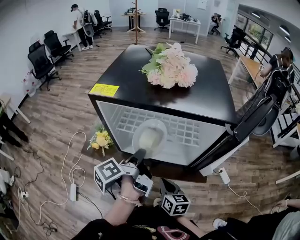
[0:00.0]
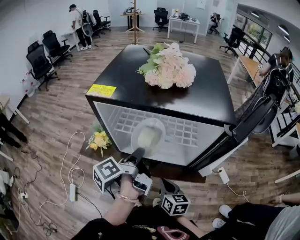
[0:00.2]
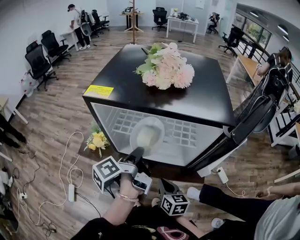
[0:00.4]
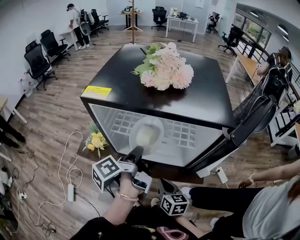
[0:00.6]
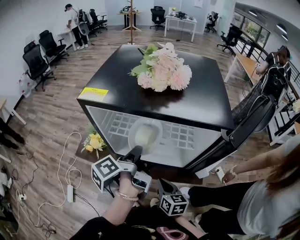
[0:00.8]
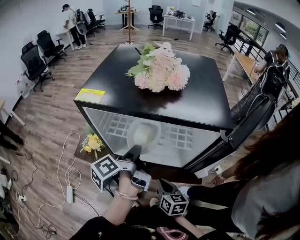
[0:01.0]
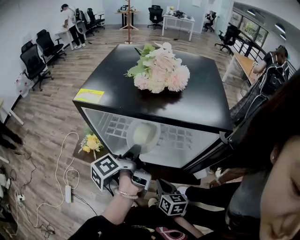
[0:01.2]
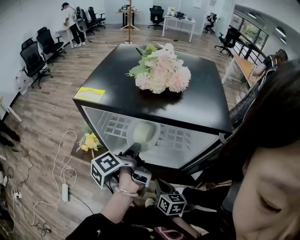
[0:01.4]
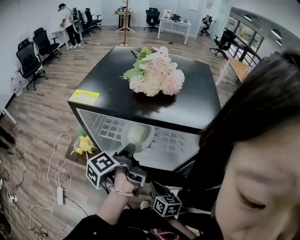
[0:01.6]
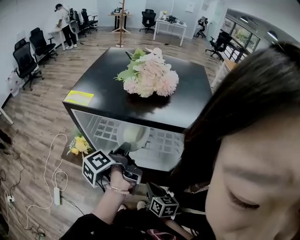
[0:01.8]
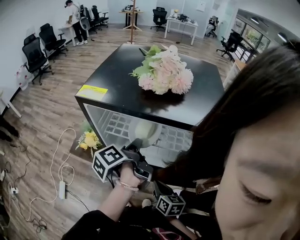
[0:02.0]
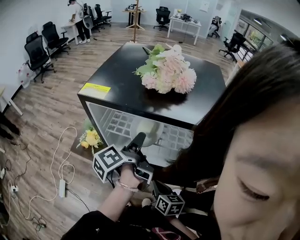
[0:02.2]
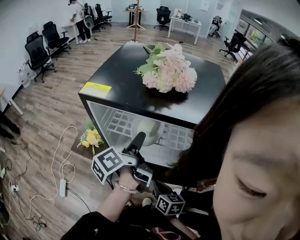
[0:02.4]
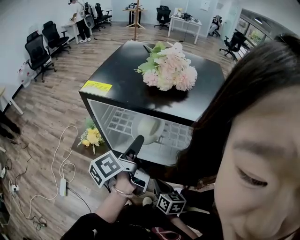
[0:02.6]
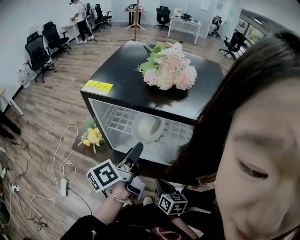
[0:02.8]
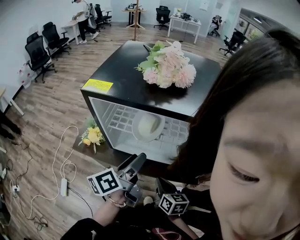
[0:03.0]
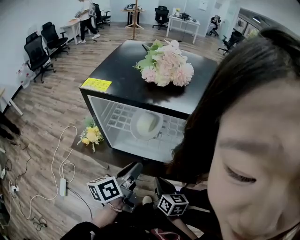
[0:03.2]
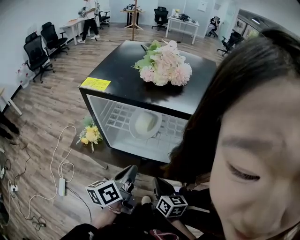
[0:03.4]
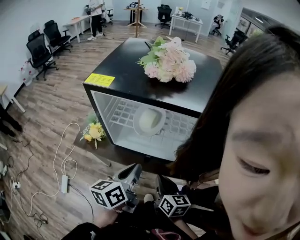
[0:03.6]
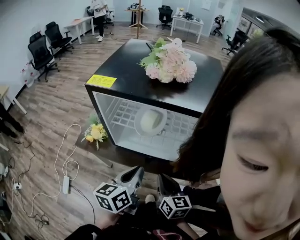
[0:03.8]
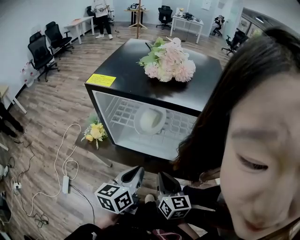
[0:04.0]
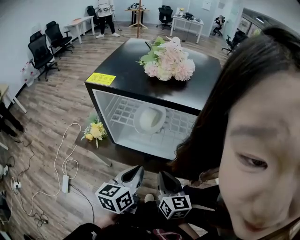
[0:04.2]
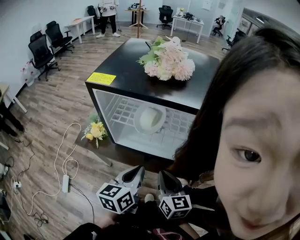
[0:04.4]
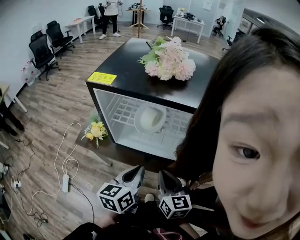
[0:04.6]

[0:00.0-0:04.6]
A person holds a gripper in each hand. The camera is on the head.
0:03.0 to 0:04.6: The right gripper moves upward, some 10 cm.

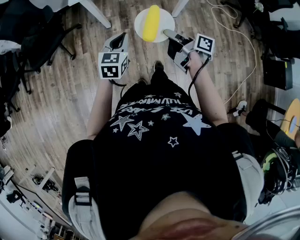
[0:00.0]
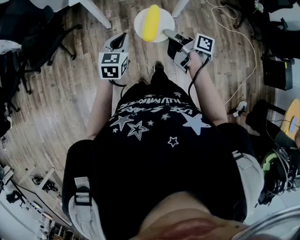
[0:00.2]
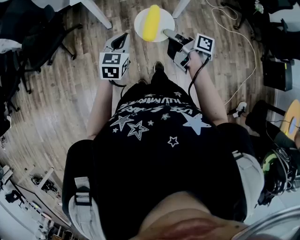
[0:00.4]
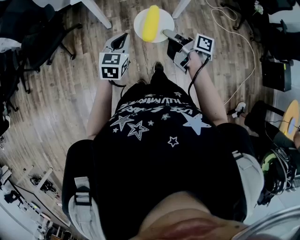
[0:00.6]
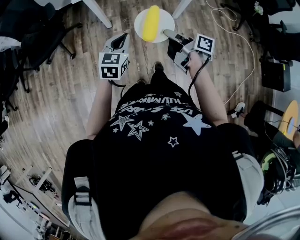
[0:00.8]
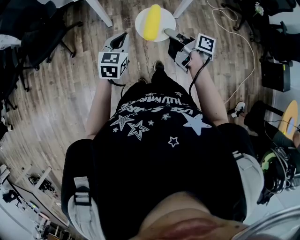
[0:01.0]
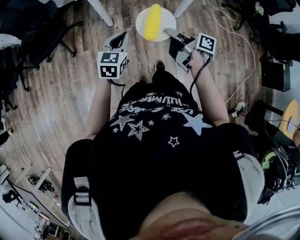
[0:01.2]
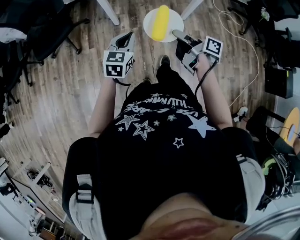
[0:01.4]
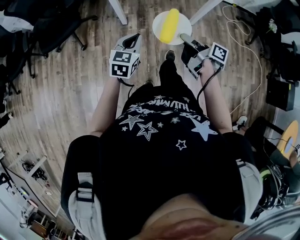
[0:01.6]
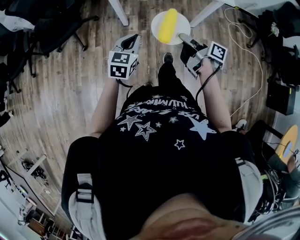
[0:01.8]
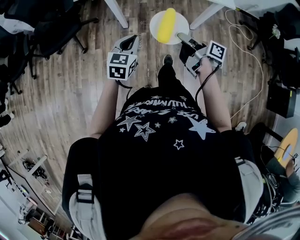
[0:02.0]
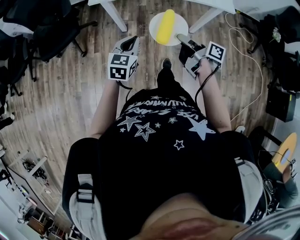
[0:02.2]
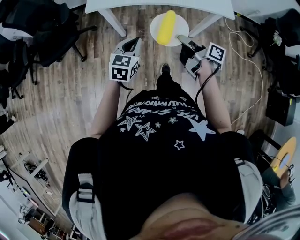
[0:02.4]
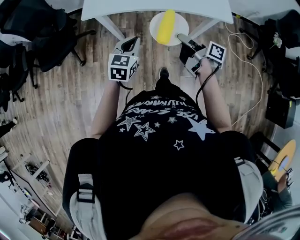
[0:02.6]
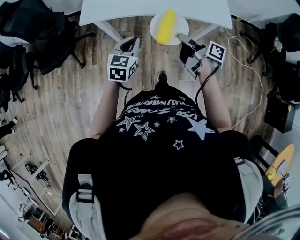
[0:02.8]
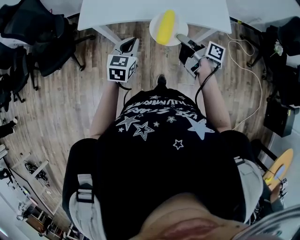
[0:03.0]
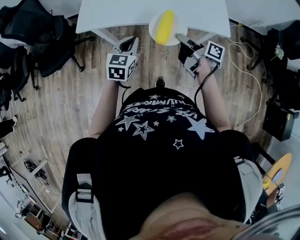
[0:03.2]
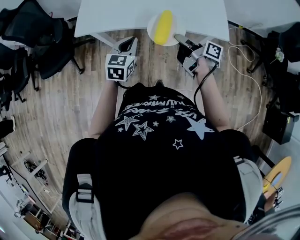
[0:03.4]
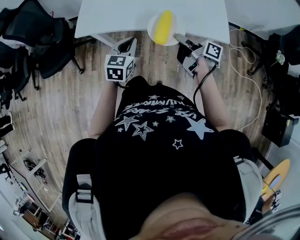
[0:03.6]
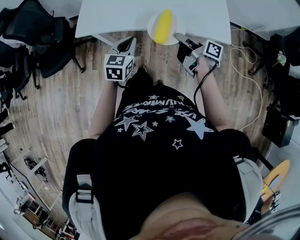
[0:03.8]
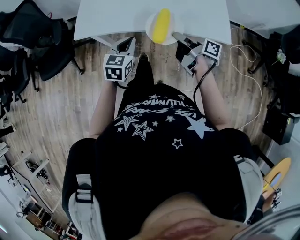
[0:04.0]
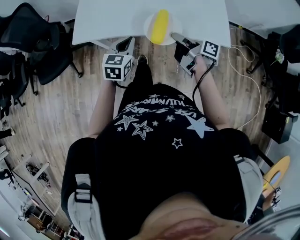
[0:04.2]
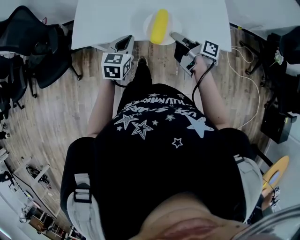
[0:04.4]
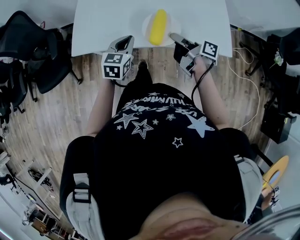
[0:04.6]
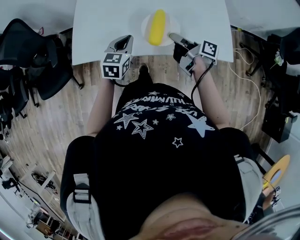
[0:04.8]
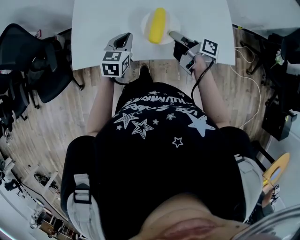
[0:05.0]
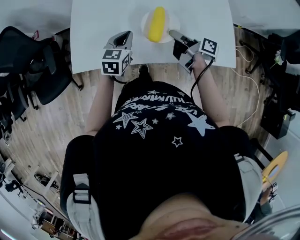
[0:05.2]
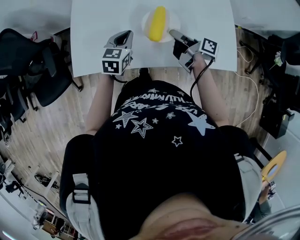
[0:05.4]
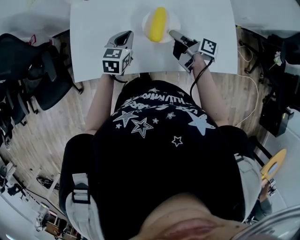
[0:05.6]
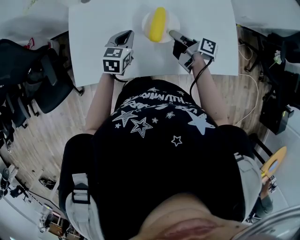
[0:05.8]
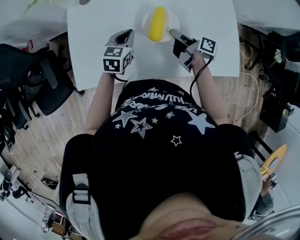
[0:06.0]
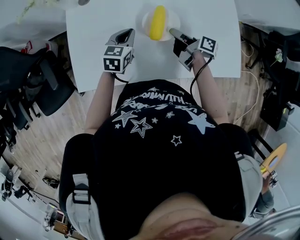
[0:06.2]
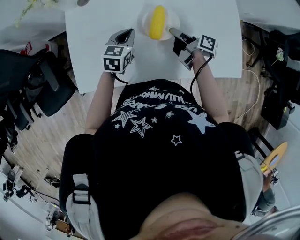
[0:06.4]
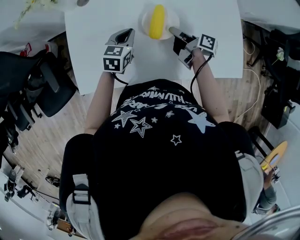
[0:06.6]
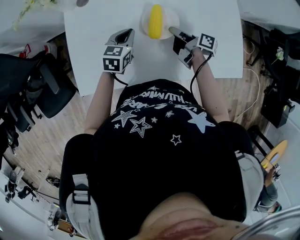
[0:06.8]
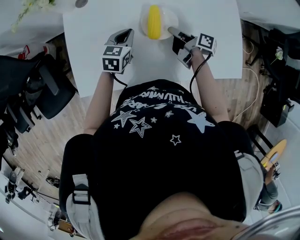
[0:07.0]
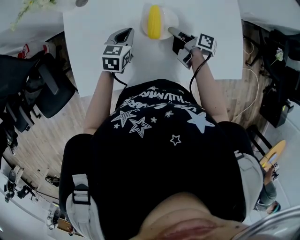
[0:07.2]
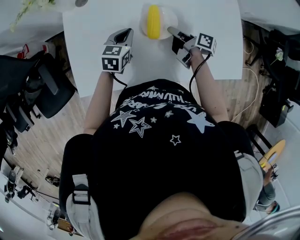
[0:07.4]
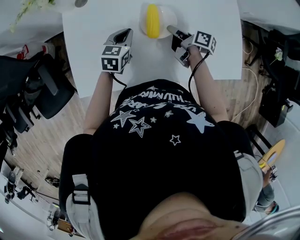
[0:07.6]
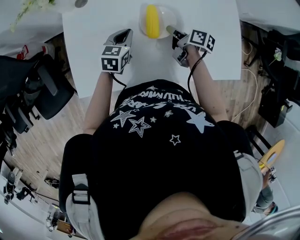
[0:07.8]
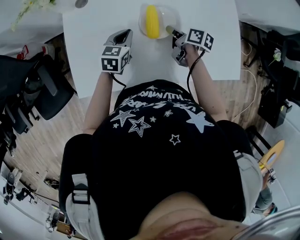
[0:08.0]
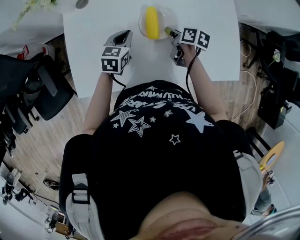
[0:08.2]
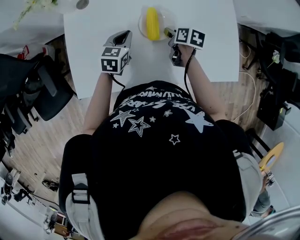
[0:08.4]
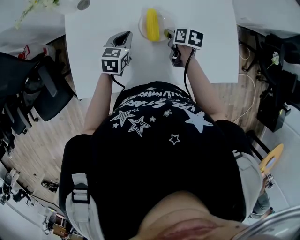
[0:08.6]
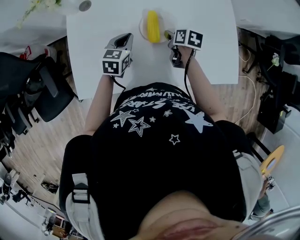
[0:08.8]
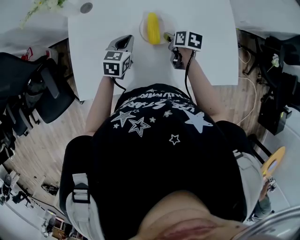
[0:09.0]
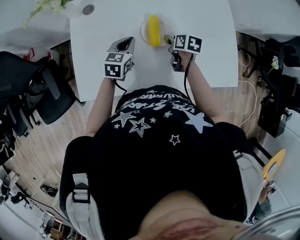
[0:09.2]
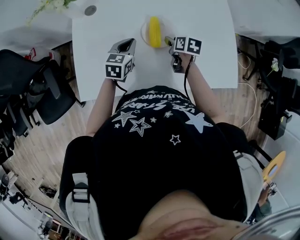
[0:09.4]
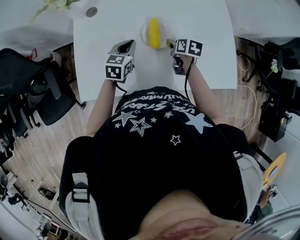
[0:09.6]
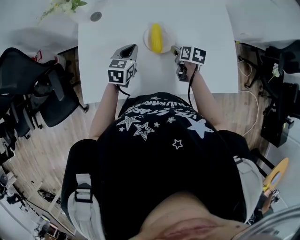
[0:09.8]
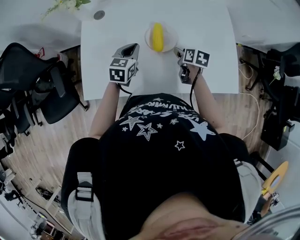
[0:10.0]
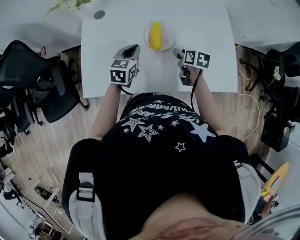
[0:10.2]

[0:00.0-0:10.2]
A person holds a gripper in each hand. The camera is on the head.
0:01.4 to 0:03.0: The left gripper shifts by roughly 30 cm.
0:03.0 to 0:04.4: The left gripper changes place by roughly 15 cm.
0:04.4 to 0:05.8: The left gripper shifts by some 25 cm.
0:05.8 to 0:07.2: The left gripper ends up some 10 cm from where it was.
0:08.8 to 0:10.2: The left gripper moves some 10 cm.

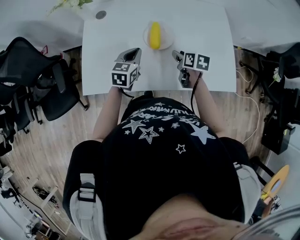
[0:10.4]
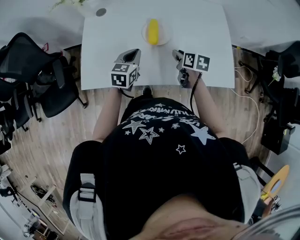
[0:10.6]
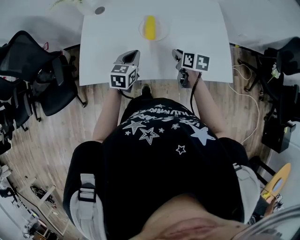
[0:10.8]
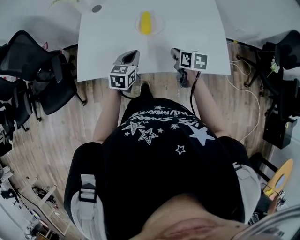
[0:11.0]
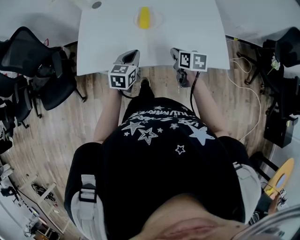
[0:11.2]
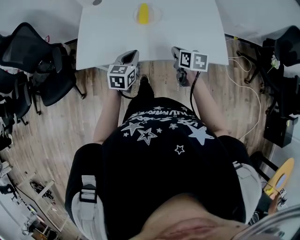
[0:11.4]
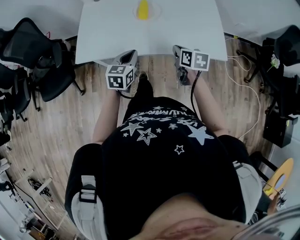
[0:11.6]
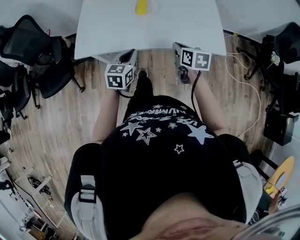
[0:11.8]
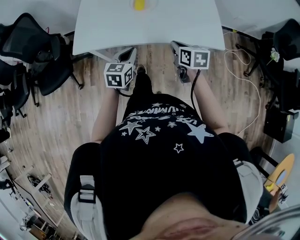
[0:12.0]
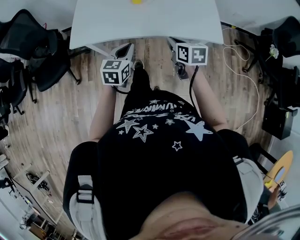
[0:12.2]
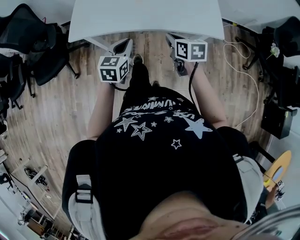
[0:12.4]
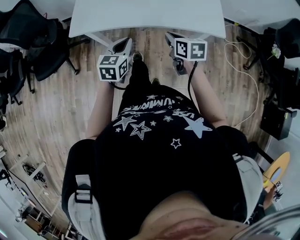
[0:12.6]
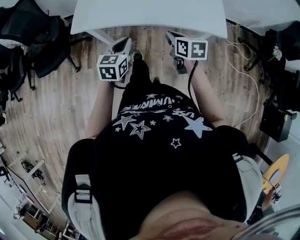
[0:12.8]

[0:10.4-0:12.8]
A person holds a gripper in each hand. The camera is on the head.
0:10.4 to 0:11.6: The left gripper moves roughly 20 cm.
0:11.6 to 0:12.8: The left gripper moves about 10 cm.

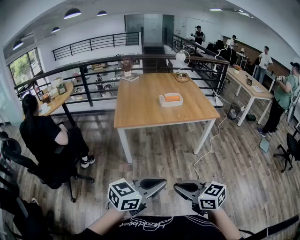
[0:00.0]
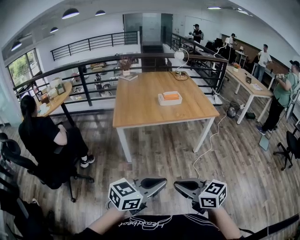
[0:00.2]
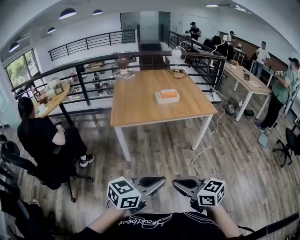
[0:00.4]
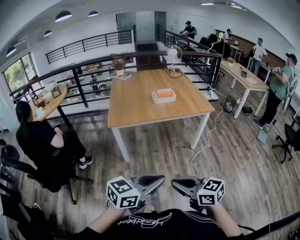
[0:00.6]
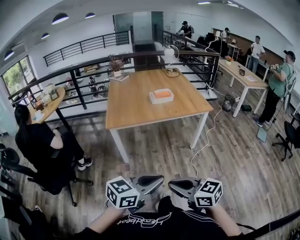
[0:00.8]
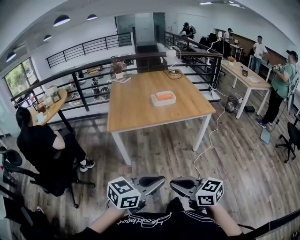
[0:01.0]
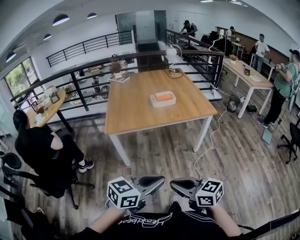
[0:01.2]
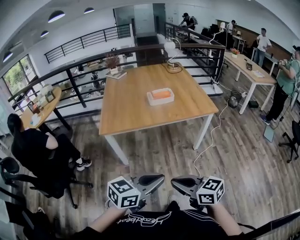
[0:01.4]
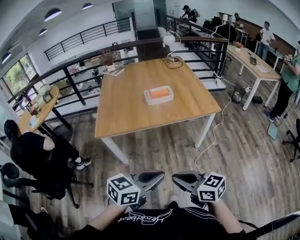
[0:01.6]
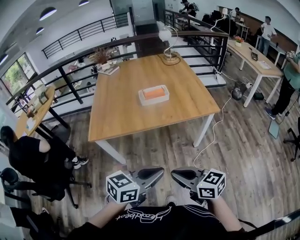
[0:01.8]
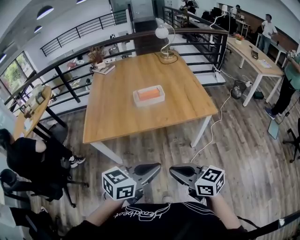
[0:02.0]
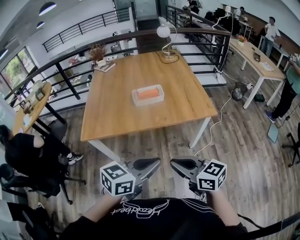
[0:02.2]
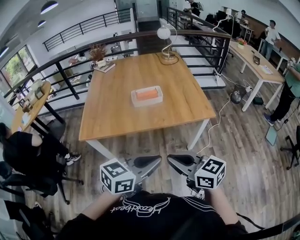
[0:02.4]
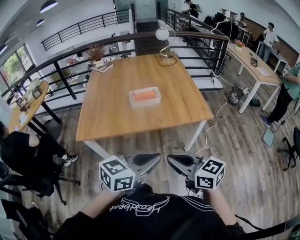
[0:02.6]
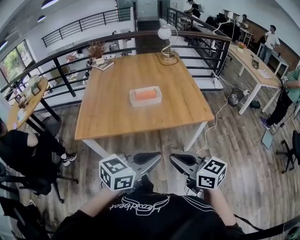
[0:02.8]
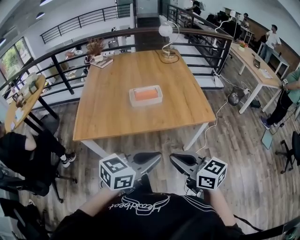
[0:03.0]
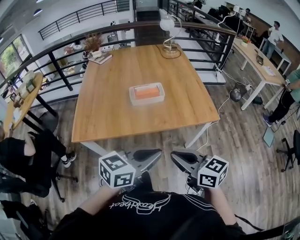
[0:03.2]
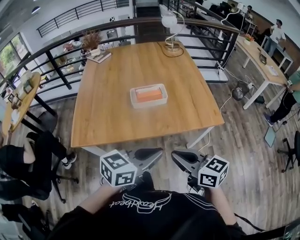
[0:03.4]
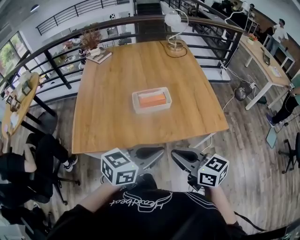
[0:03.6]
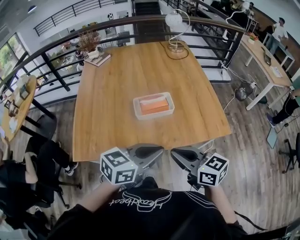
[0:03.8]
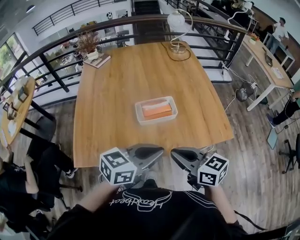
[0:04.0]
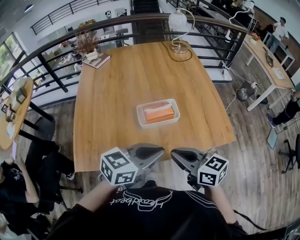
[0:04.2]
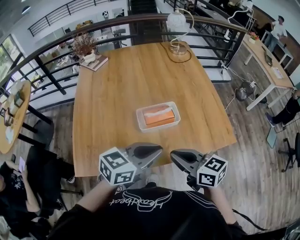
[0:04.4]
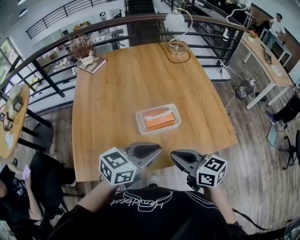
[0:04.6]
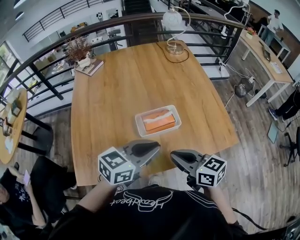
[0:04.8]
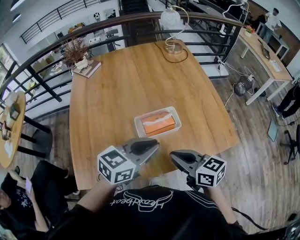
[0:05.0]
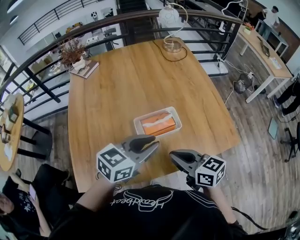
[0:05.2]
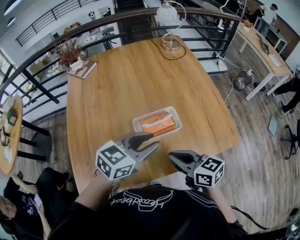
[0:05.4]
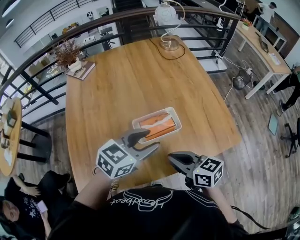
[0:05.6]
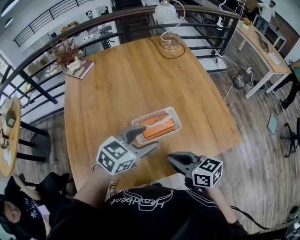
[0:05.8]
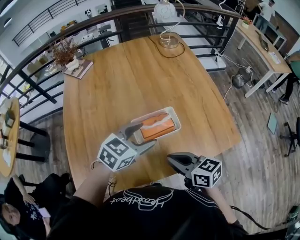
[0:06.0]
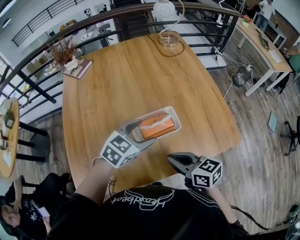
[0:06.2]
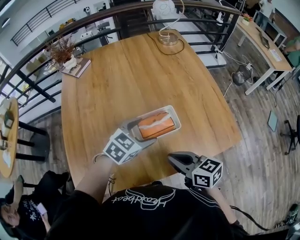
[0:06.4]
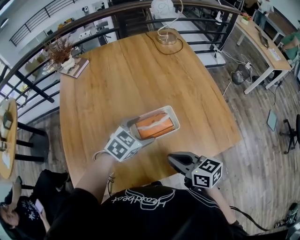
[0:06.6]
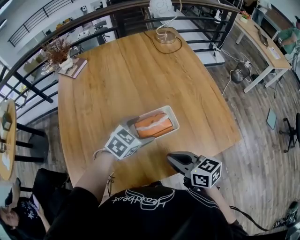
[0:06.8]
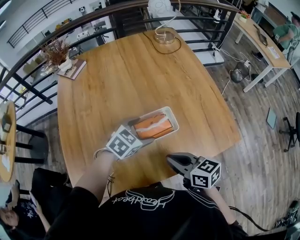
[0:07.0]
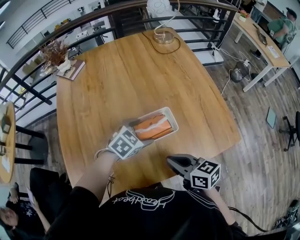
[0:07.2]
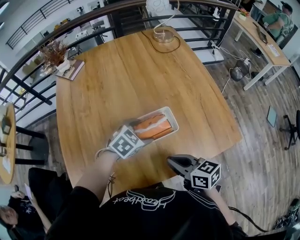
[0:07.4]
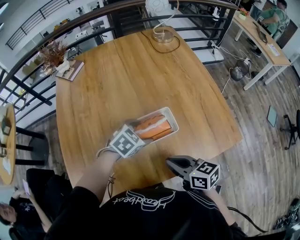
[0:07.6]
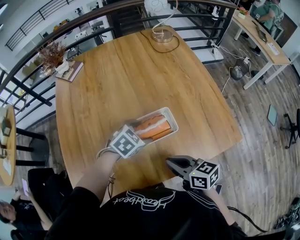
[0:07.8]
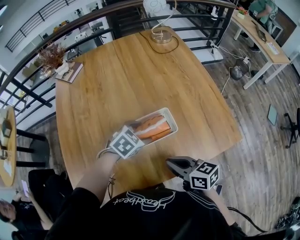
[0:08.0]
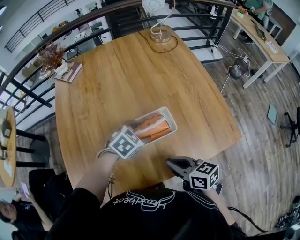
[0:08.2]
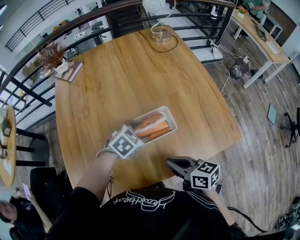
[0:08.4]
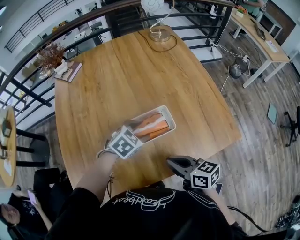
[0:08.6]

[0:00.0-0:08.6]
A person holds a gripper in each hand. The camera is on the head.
0:00.0 to 0:01.4: Both grippers travel together forward and to the right, some 20 cm.
0:01.4 to 0:02.8: Both grippers travel together forward and to the right, about 30 cm.
0:02.8 to 0:04.4: Both grippers move forward, about 35 cm.
0:04.4 to 0:05.8: The left gripper travels forward and downward by about 15 cm, and opens its fingers. The right gripper moves forward and downward, some 10 cm.
0:05.8 to 0:07.2: The left gripper is displaced downward and forward by roughly 15 cm, swivels approximately 20 degrees, and opens.
0:07.2 to 0:08.6: The grippers make only small movements.
